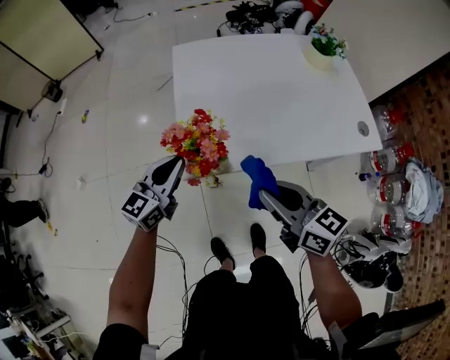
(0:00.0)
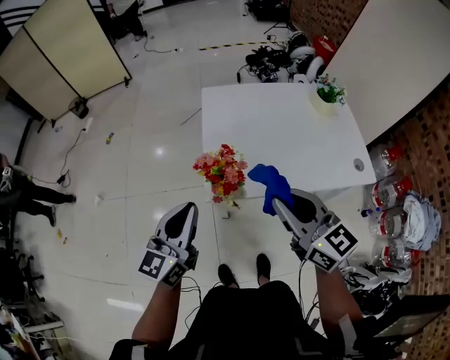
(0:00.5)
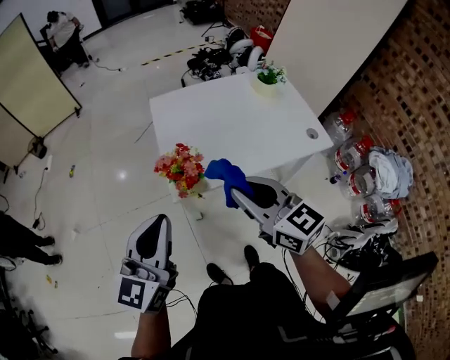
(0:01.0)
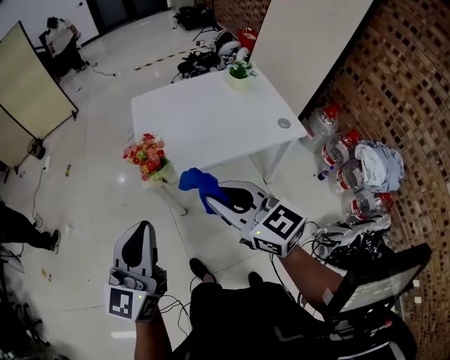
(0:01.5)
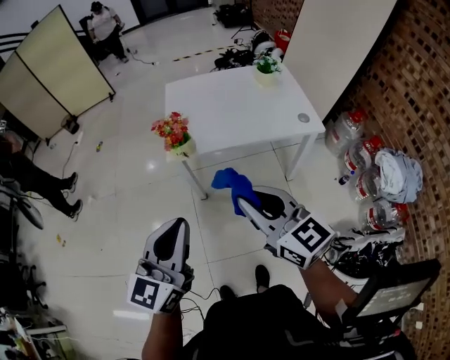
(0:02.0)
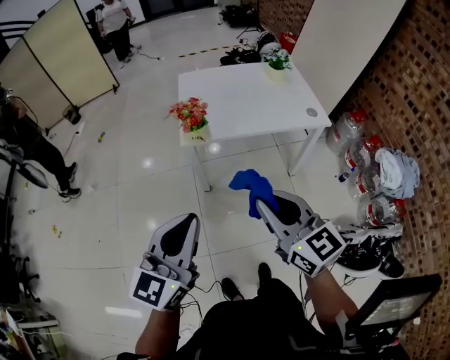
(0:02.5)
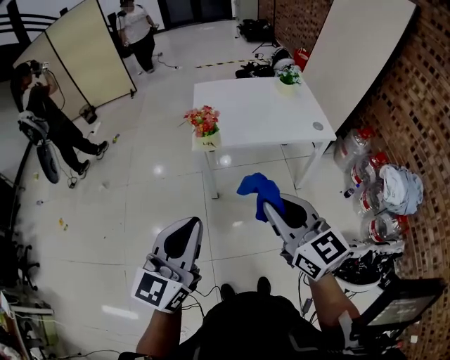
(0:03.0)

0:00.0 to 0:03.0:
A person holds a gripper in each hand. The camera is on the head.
0:00.0 to 0:01.5: The left gripper moves backward and upward, approximately 35 cm; the right gripper travels upward and backward by approximately 25 cm, and swivels approximately 20 degrees.
0:01.5 to 0:03.0: Both grippers move backward, about 20 cm.

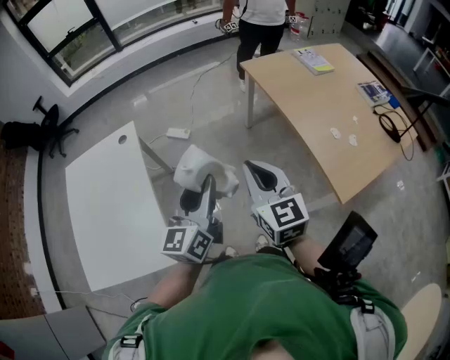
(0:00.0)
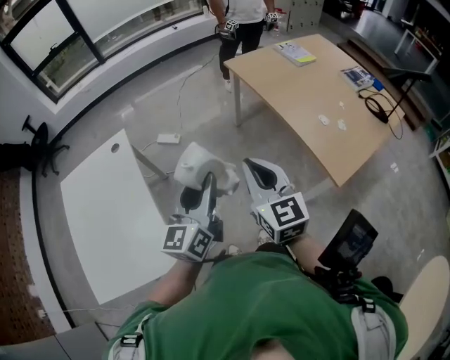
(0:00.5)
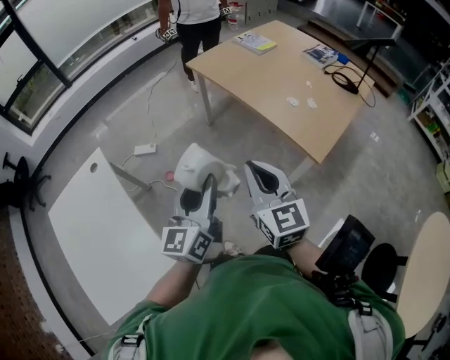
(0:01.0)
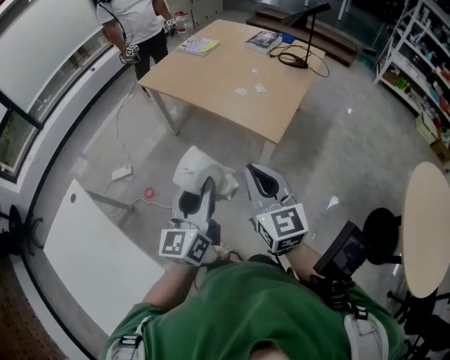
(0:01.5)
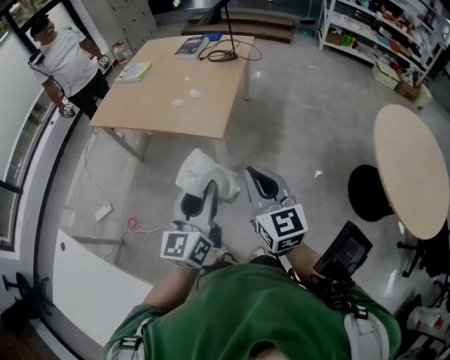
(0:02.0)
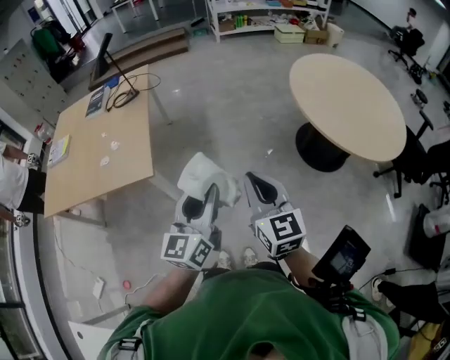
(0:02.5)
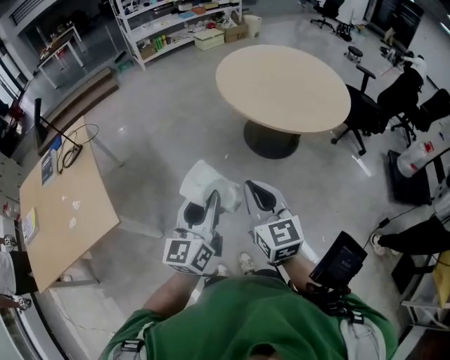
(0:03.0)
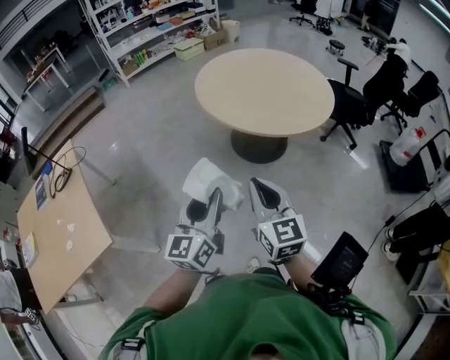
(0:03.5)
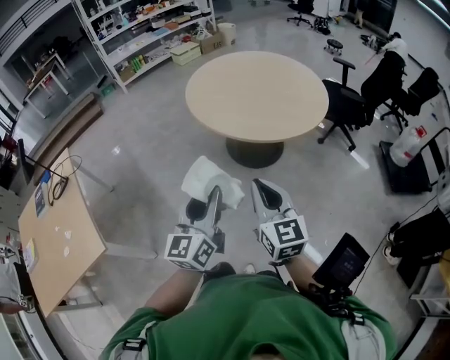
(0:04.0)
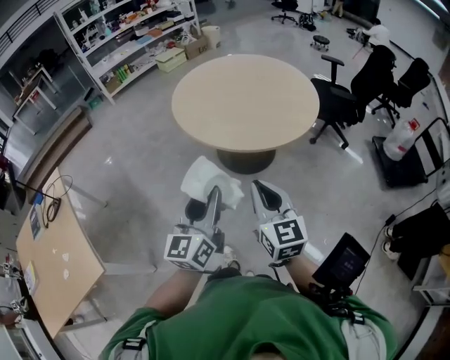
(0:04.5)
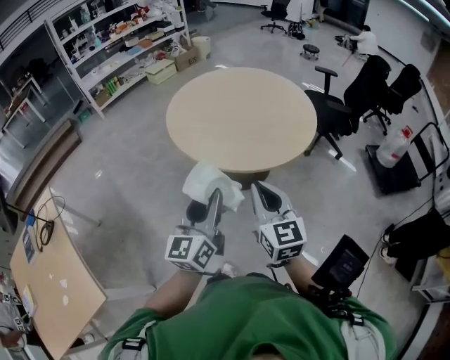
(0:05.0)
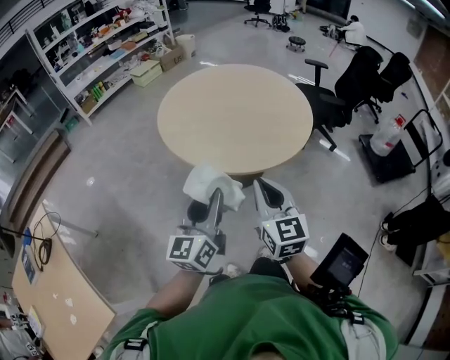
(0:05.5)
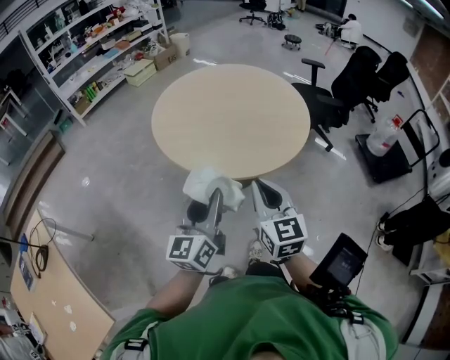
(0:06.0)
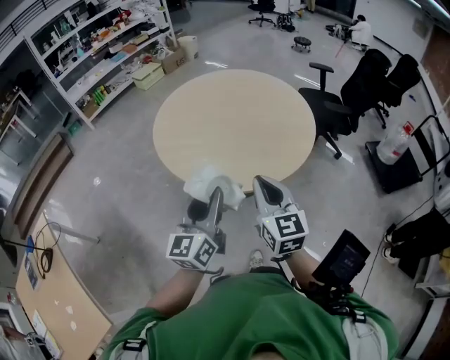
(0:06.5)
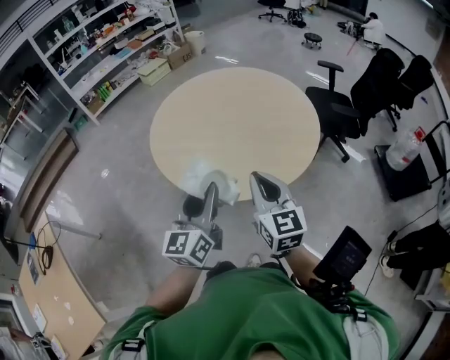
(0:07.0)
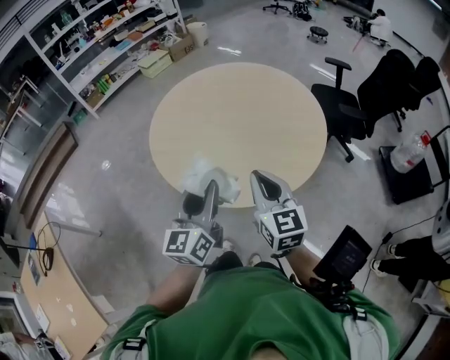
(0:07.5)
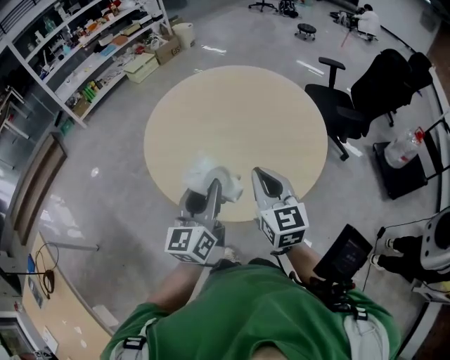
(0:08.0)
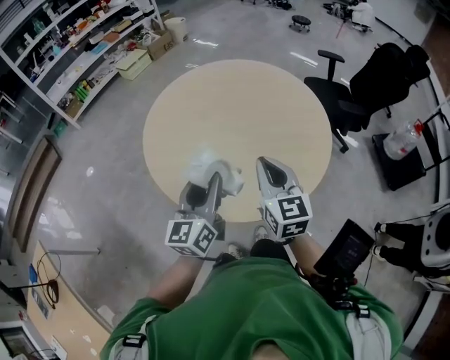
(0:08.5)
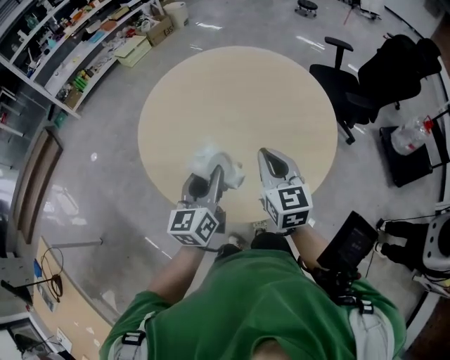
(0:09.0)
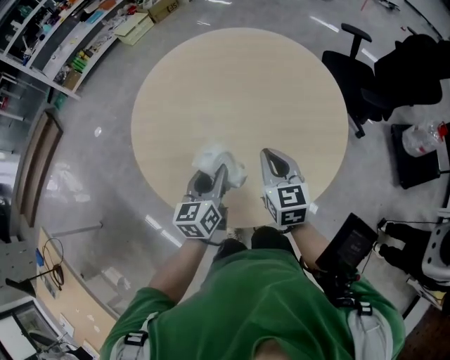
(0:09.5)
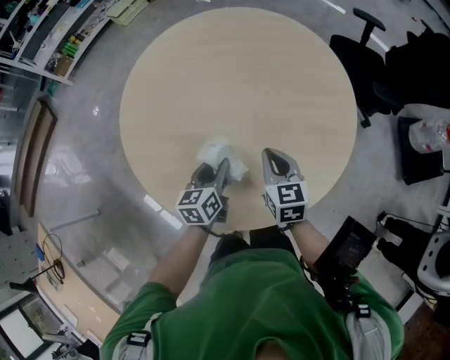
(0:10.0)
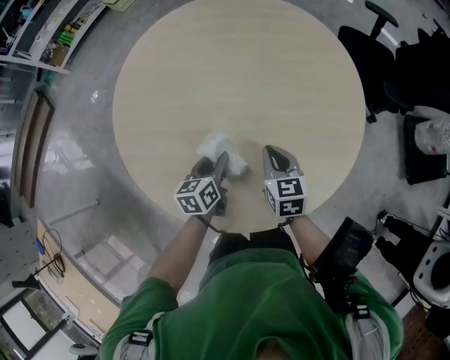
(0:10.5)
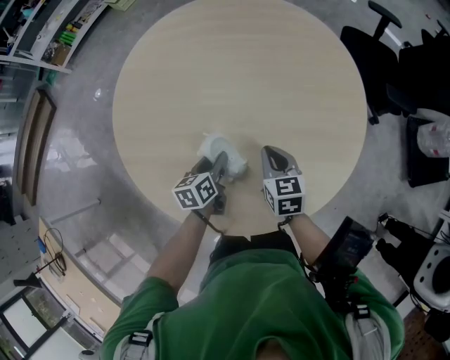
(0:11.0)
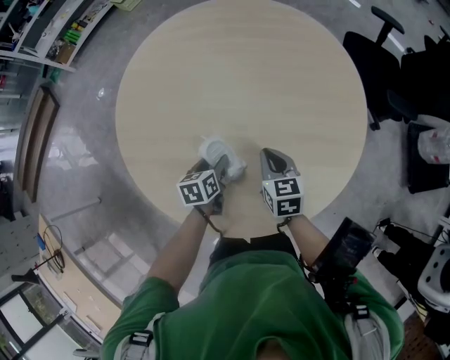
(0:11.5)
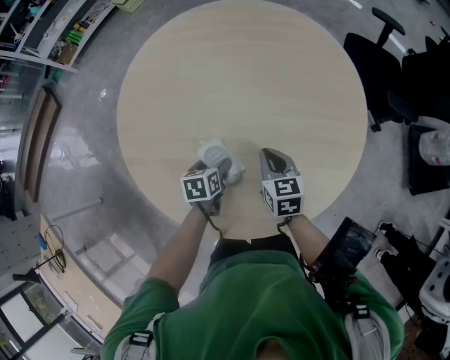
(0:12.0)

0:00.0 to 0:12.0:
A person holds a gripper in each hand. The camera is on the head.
0:00.0 to 0:02.0: The right gripper ends up some 40 cm from where it was, and changes its angle by approximately 50 degrees; the left gripper changes place by roughly 40 cm, and turns by about 50 degrees.
0:02.0 to 0:04.0: The two grippers travel together, some 50 cm. The right gripper turns by about 60 degrees; the left gripper swivels approximately 60 degrees.
0:04.0 to 0:06.0: The grippers both shift forward by approximately 20 cm.
0:06.0 to 0:08.0: The grippers both shift forward by roughly 25 cm.
0:08.0 to 0:10.0: Both grippers move downward and forward, roughly 30 cm. The left gripper angles its fingers downward, by about 30 degrees; the right gripper swivels about 20 degrees.
0:10.0 to 0:12.0: The left gripper shifts about 10 cm downward, turns by approximately 30 degrees, and opens; the right gripper heads downward, covering about 5 cm.

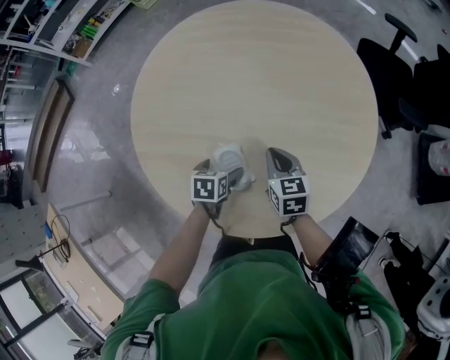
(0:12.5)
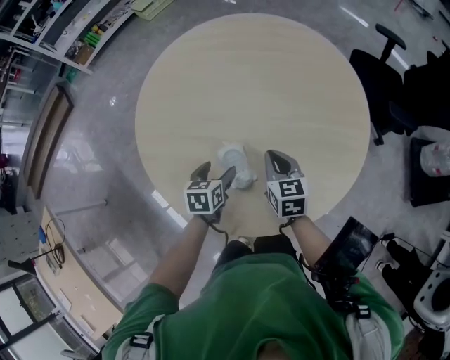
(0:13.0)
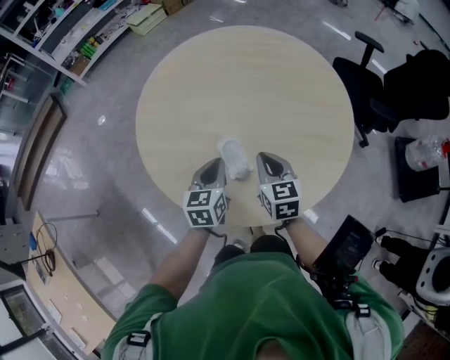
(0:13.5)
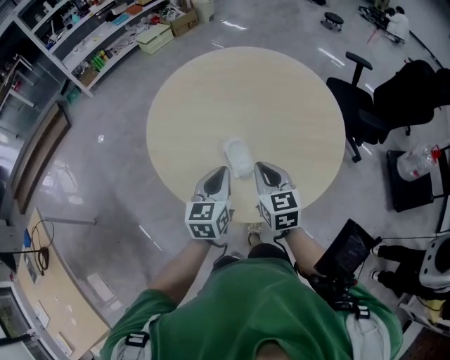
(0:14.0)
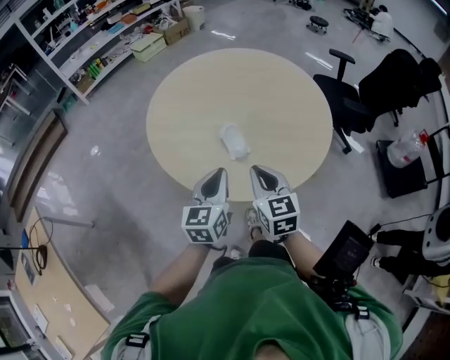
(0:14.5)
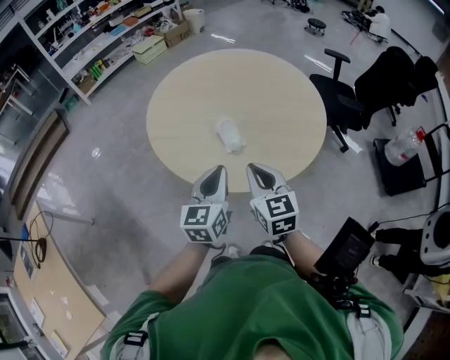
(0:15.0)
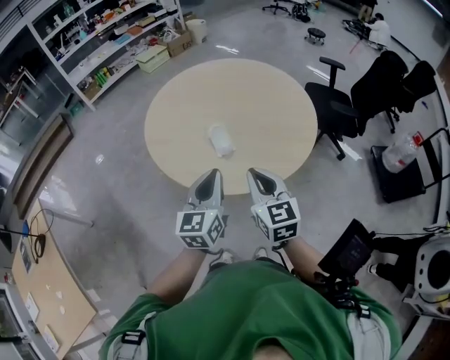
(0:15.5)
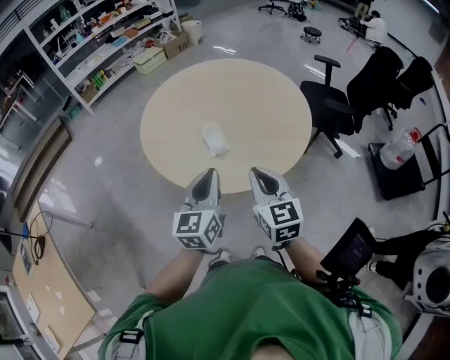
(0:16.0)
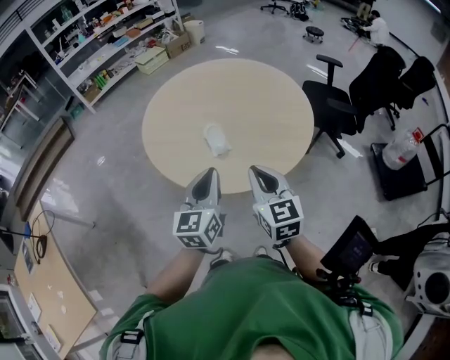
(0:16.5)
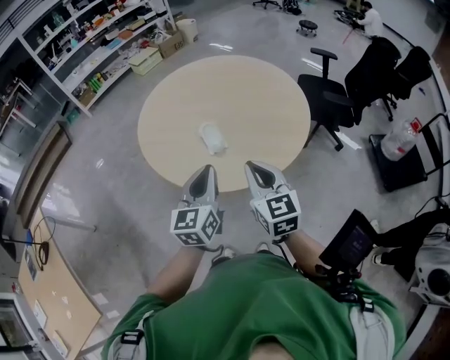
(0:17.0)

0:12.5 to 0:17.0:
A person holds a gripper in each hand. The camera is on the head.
0:12.5 to 0:14.5: The left gripper shifts approximately 35 cm upward and backward, tips its fingers upward by approximately 50 degrees, and closes its fingers. The right gripper heads backward and upward, covering roughly 30 cm, and turns by roughly 20 degrees.
0:14.5 to 0:17.0: The left gripper goes approximately 10 cm backward, upward and to the right; the right gripper shifts some 15 cm backward, to the right and upward.

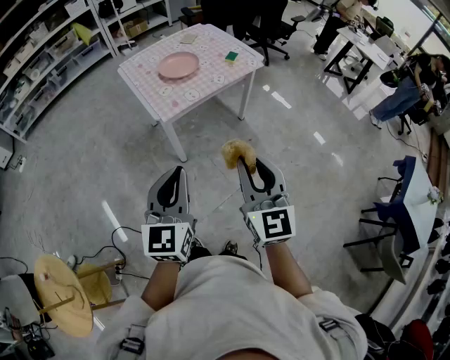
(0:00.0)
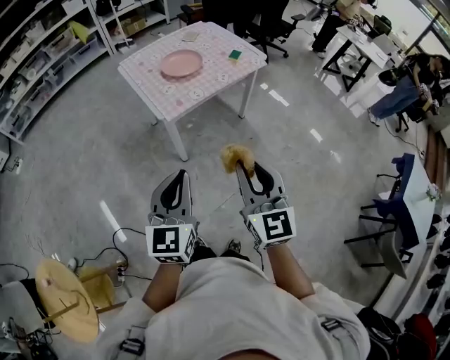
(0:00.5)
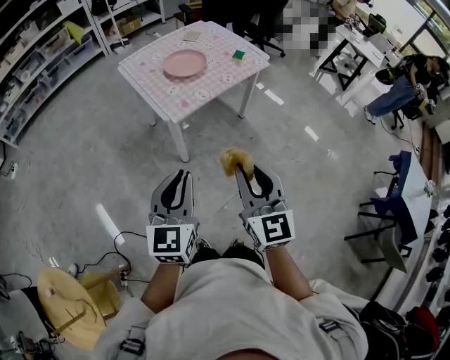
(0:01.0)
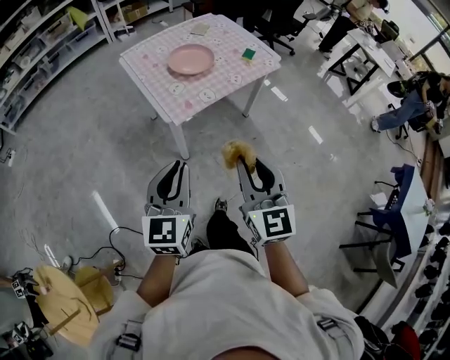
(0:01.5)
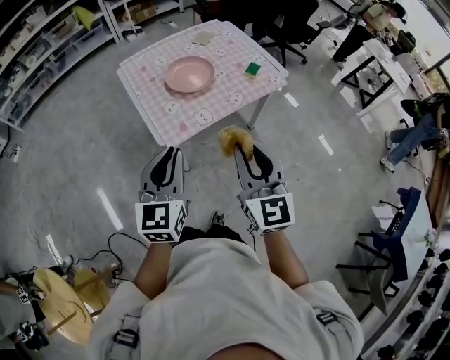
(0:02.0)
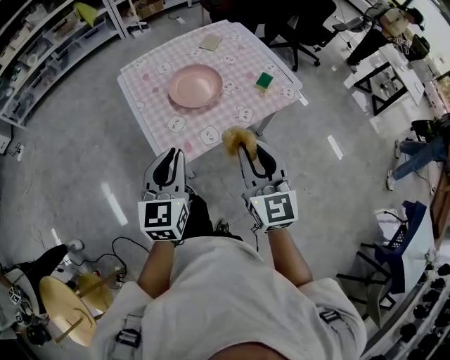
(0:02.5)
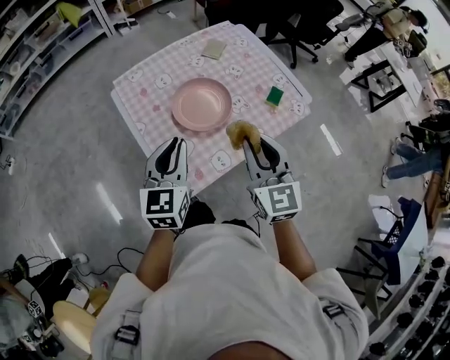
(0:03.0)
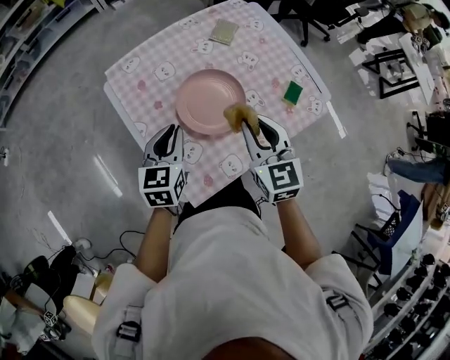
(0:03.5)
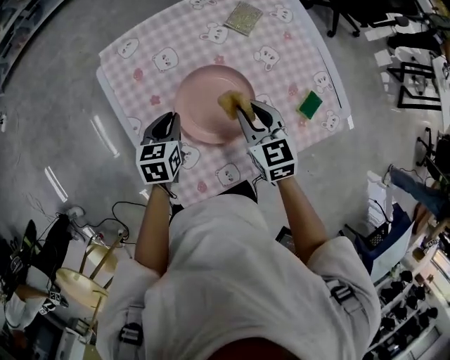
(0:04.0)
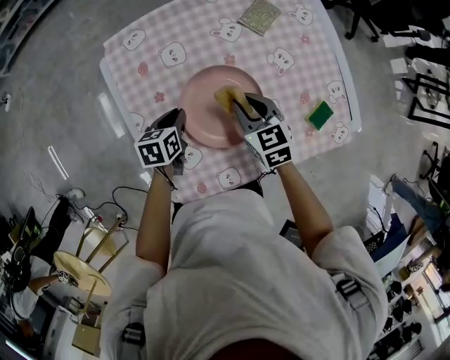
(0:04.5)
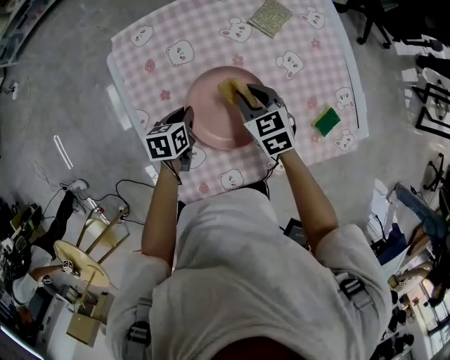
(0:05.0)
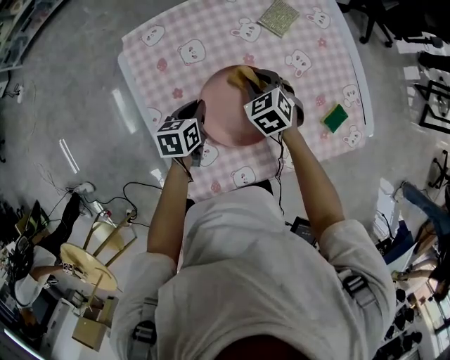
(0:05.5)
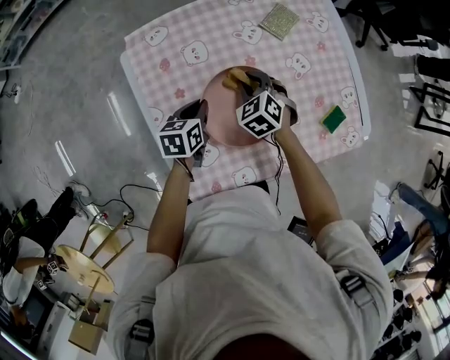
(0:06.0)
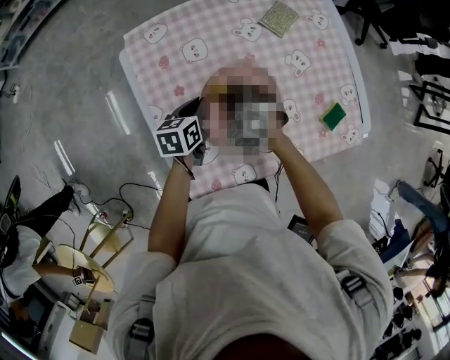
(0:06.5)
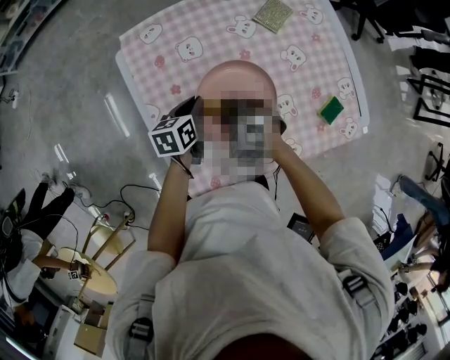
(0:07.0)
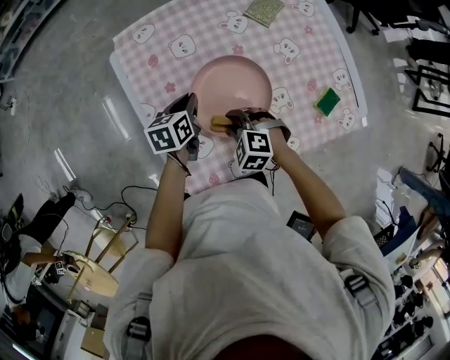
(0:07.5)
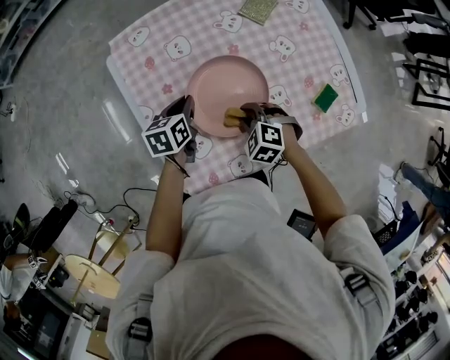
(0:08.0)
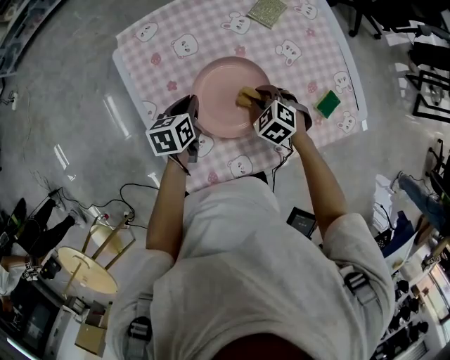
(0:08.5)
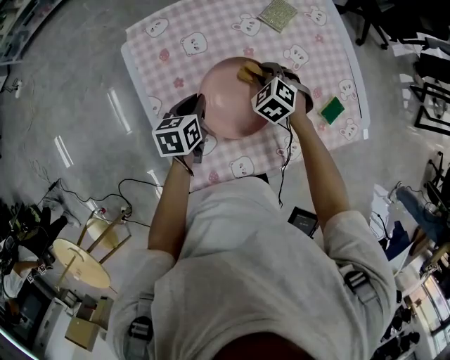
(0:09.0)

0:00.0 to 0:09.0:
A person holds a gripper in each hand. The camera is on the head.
0:00.0 to 0:02.0: Both grippers travel together forward, approximately 25 cm.
0:02.0 to 0:04.5: Both grippers move downward and to the right, some 40 cm. The left gripper moves roughly 40 cm forward and comes back, and angles its fingers downward, by about 40 degrees; the right gripper travels forward and back again, some 40 cm each way, and tilts its fingers some 30 degrees downward.
0:04.5 to 0:07.0: The right gripper shifts some 10 cm to the left and downward, and rotates around the line of its fingers by roughly 40 degrees, counterclockwise from behind.
0:07.0 to 0:09.0: The right gripper goes about 15 cm to the right and forward.
